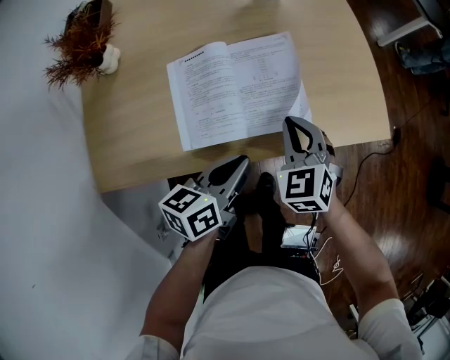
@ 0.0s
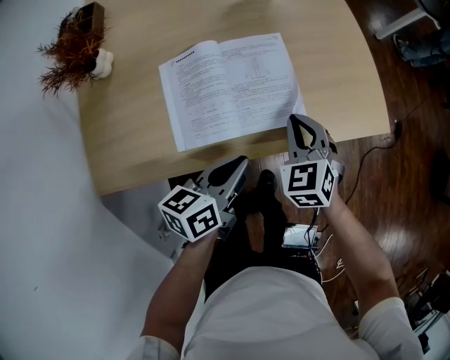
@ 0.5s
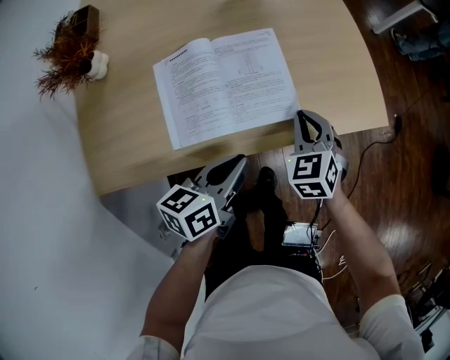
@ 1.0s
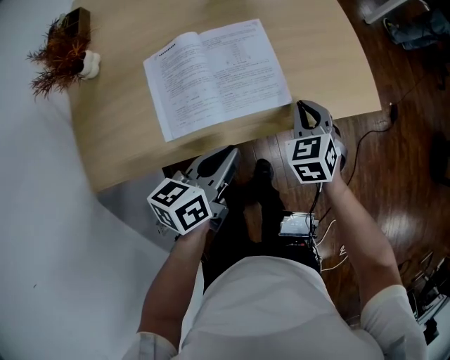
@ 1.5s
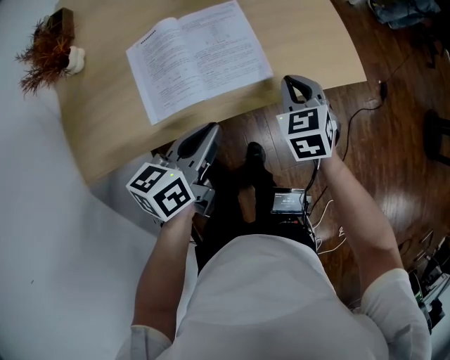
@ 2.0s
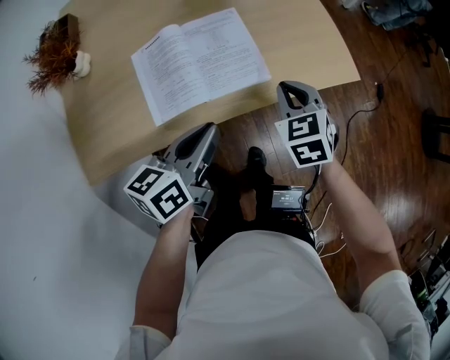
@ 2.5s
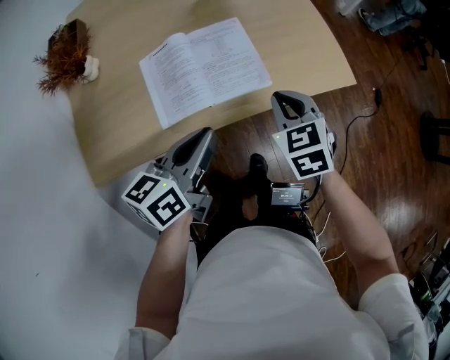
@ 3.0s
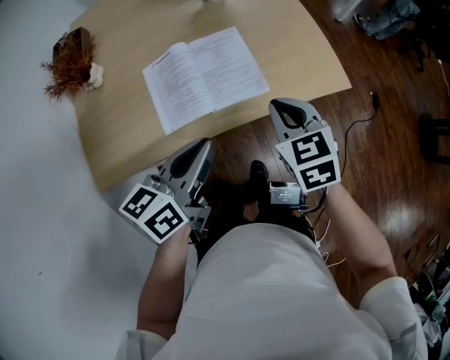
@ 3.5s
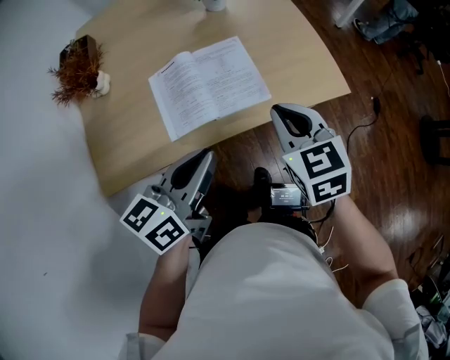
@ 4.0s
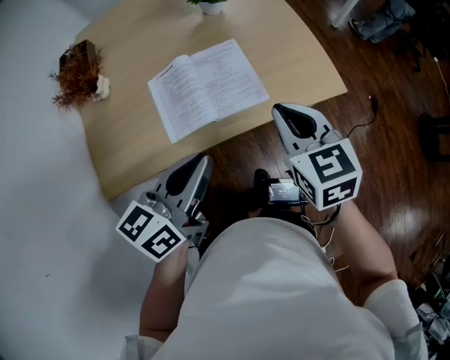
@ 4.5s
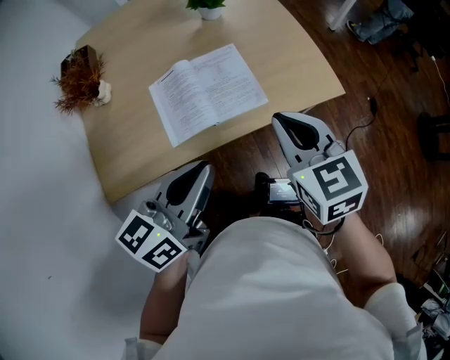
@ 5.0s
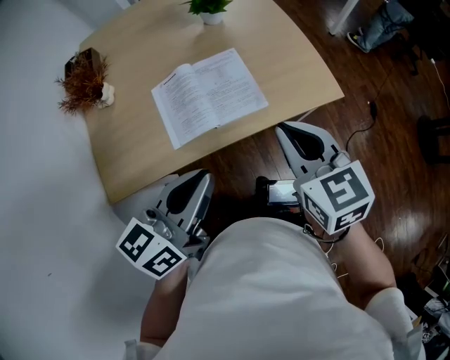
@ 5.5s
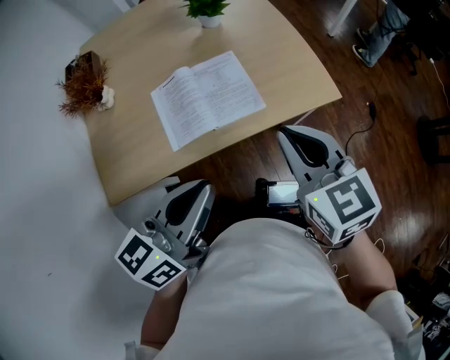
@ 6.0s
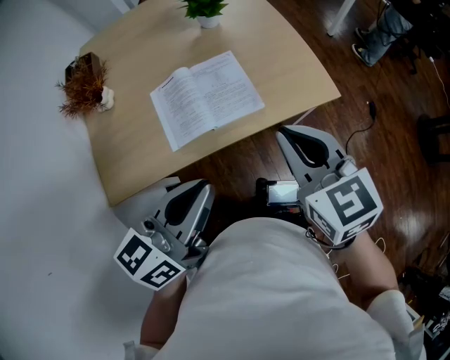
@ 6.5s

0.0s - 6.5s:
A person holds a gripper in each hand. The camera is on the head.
0.0s - 2.0s: The right gripper heads to the right, covering roughly 10 cm.
2.0s - 4.5s: The right gripper moves upward and backward, roughly 20 cm, and swivels about 20 degrees; the left gripper moves upward, about 15 cm.
4.5s - 6.5s: The left gripper ends up approximately 5 cm from where it was. Meanwhile the right gripper is displaced upward and backward by some 10 cm.

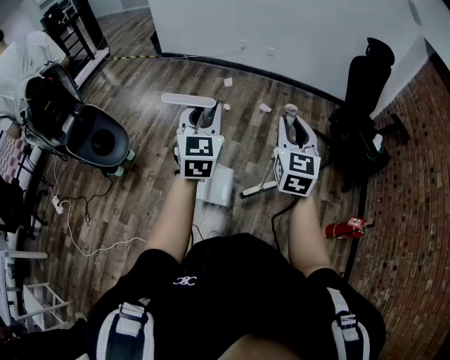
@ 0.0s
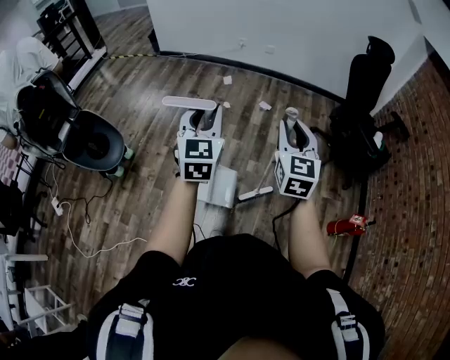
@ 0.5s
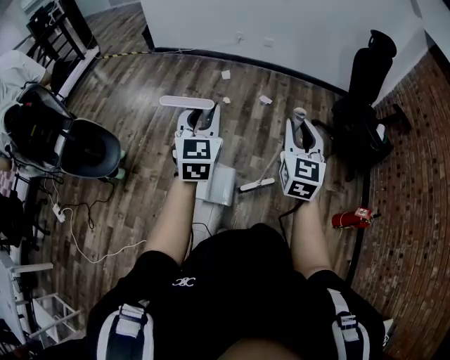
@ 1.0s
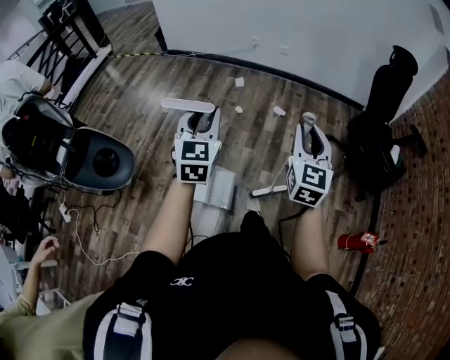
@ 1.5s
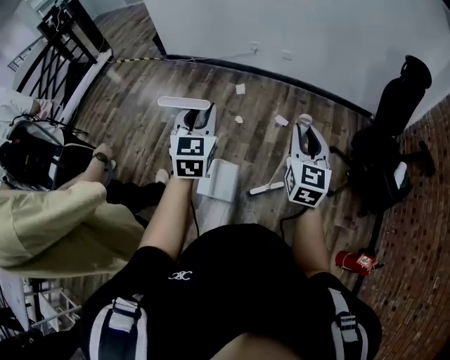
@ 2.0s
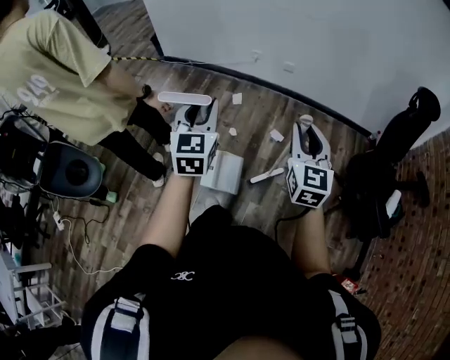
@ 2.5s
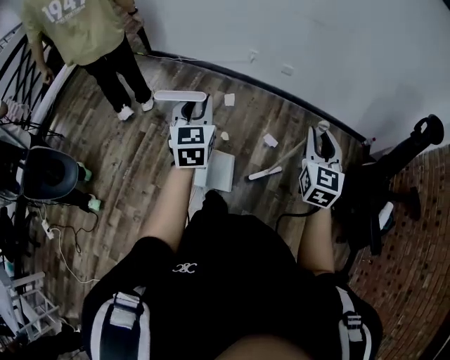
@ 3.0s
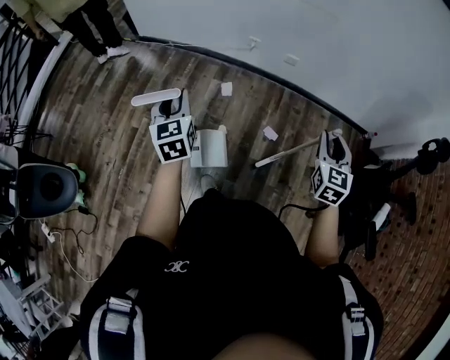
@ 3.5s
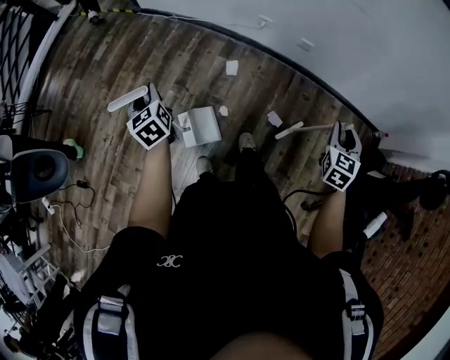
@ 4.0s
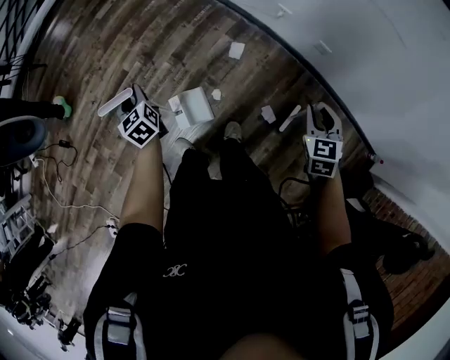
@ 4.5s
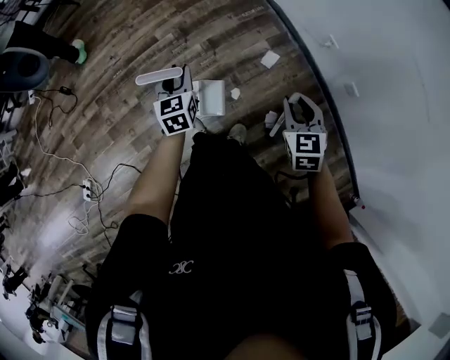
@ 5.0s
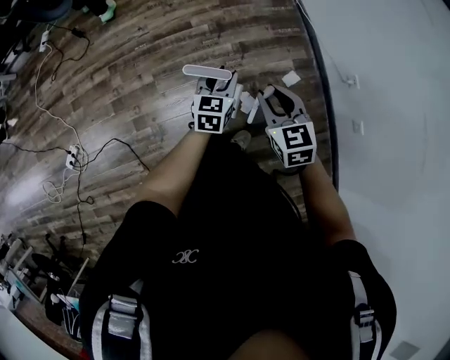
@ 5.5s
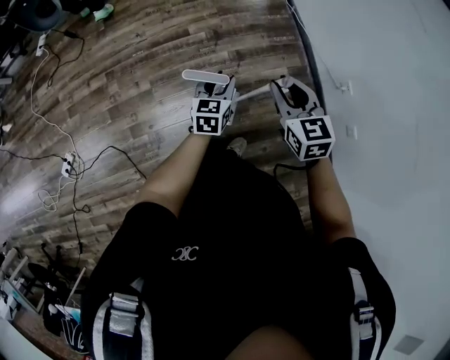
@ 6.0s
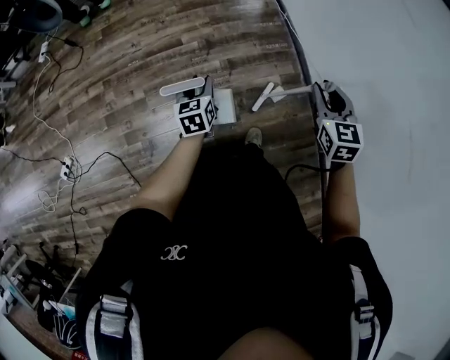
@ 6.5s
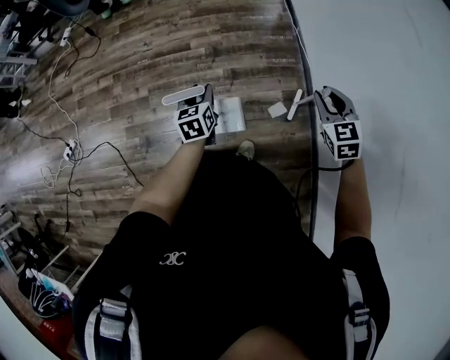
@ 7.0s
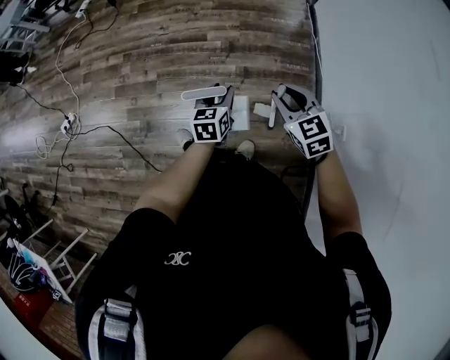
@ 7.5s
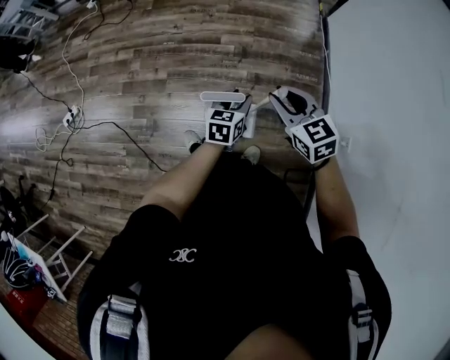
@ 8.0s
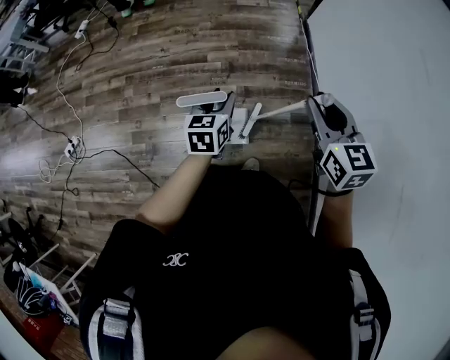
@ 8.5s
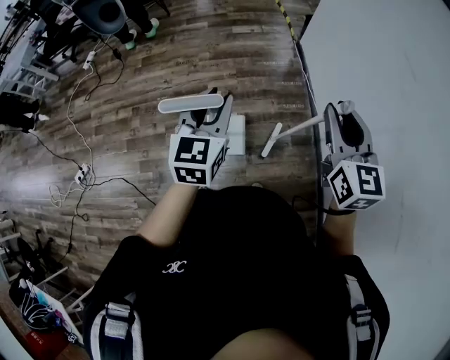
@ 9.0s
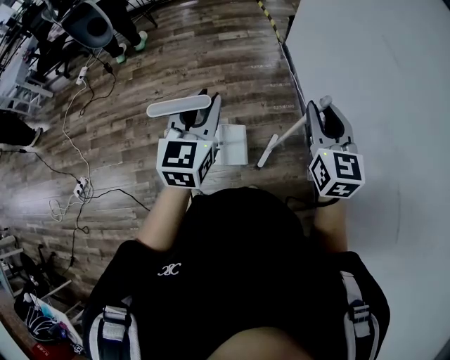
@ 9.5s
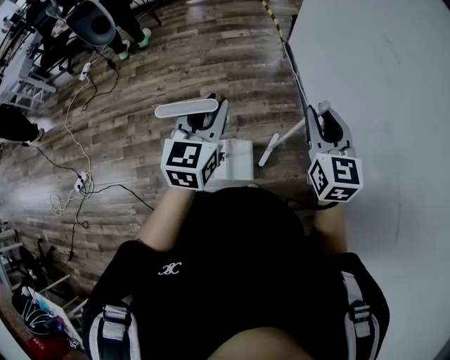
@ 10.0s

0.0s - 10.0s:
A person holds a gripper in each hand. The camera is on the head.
0.0s - 2.0s: The two grippers go roughly 30 cm forward.
2.0s - 4.0s: The right gripper travels forward by roughly 50 cm, and swivels some 30 degrees; the left gripper shifts roughly 60 cm forward, downward and to the left, and swivels about 50 degrees.
4.0s - 6.0s: The right gripper goes downward and returns, roughly 10 cm each way, and rotates approximately 80 degrees. Meanwhile the left gripper is displaced downward by about 10 cm.
6.0s - 8.0s: The left gripper moves approximately 10 cm. The right gripper rotates some 30 degrees.
8.0s - 10.0s: The right gripper is displaced to the right and upward by approximately 25 cm, and swivels about 40 degrees; the left gripper moves upward, about 30 cm, and swivels some 30 degrees.

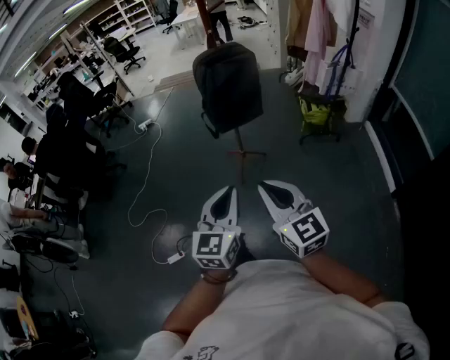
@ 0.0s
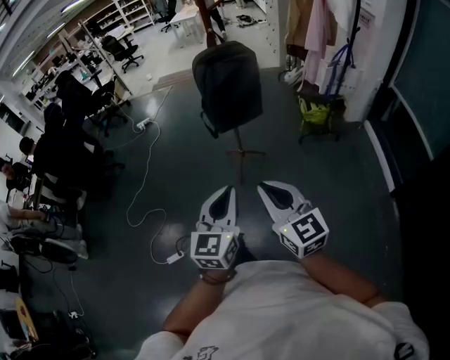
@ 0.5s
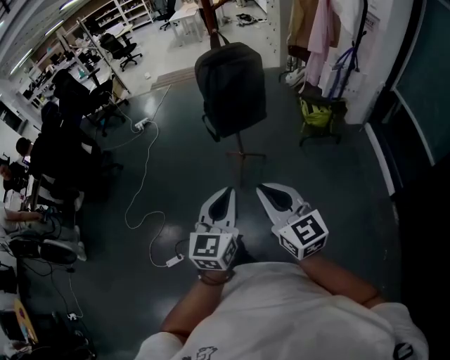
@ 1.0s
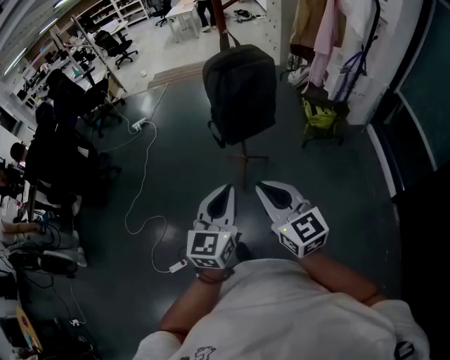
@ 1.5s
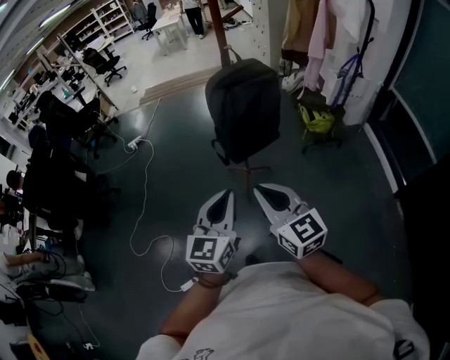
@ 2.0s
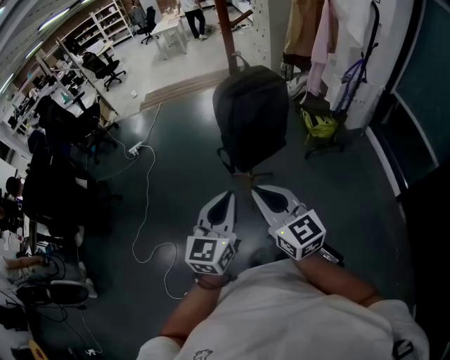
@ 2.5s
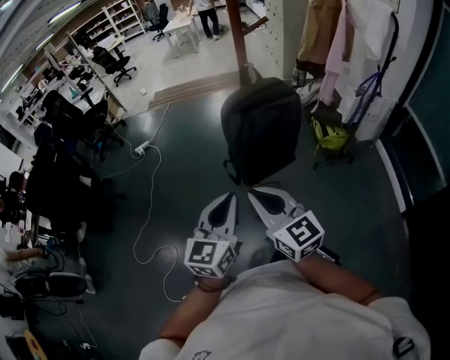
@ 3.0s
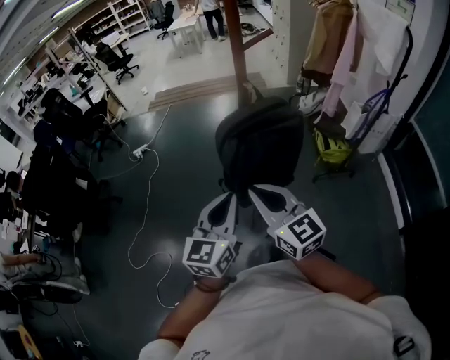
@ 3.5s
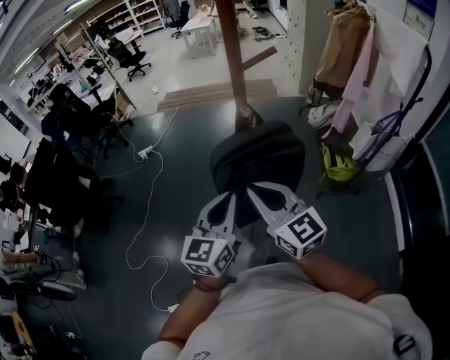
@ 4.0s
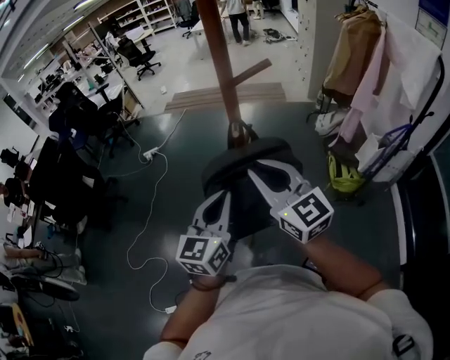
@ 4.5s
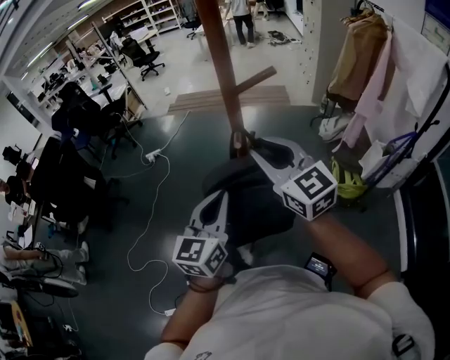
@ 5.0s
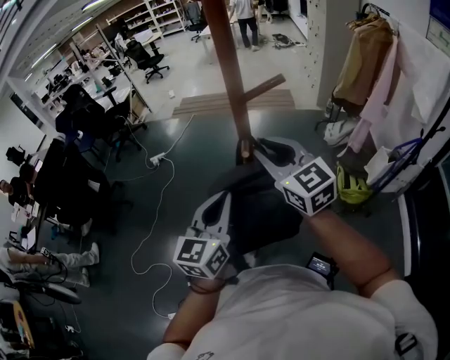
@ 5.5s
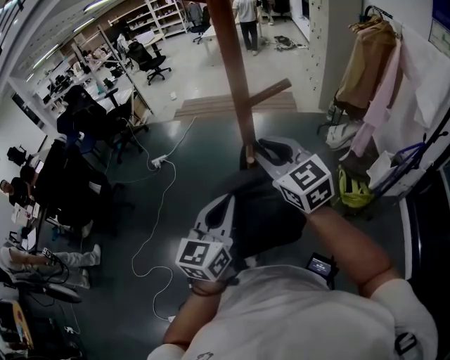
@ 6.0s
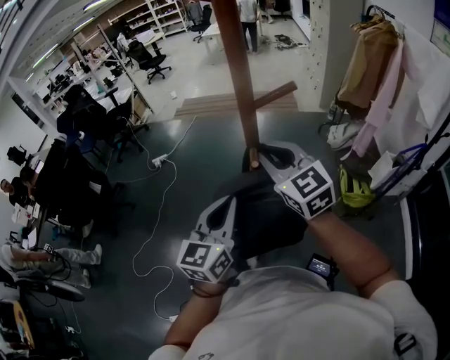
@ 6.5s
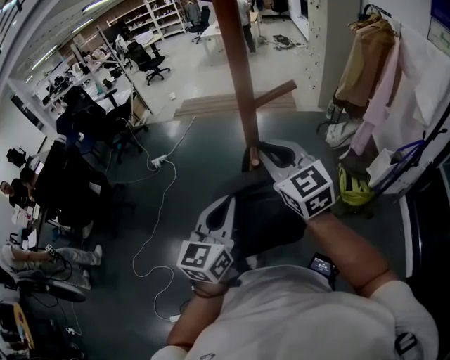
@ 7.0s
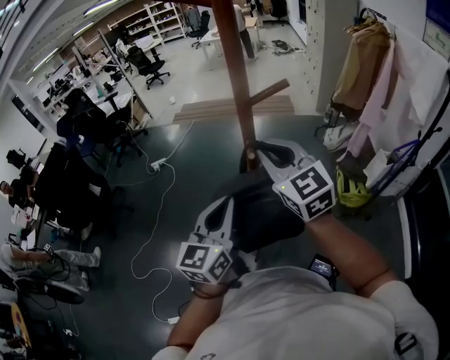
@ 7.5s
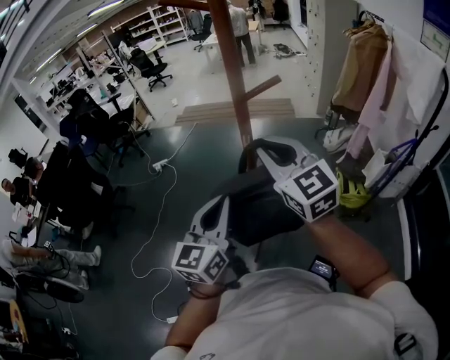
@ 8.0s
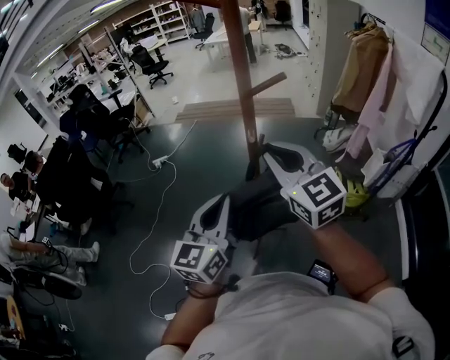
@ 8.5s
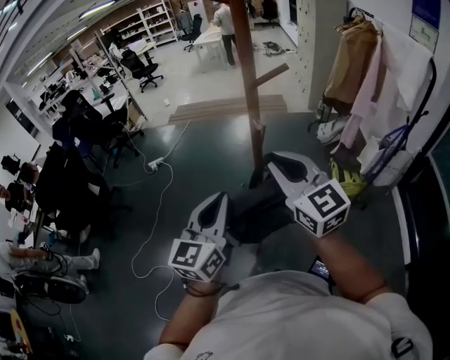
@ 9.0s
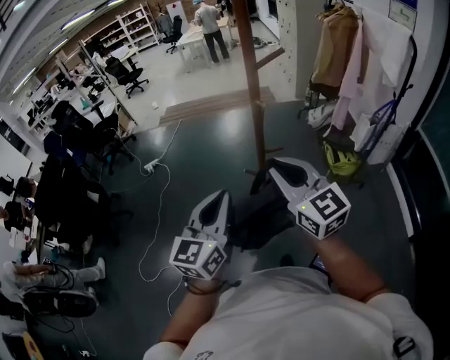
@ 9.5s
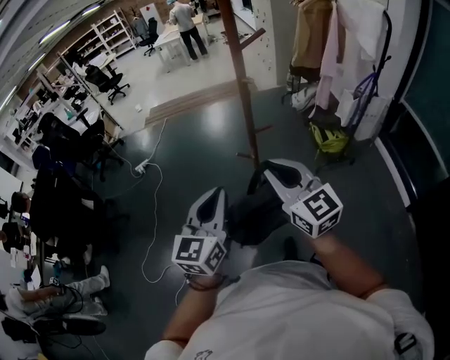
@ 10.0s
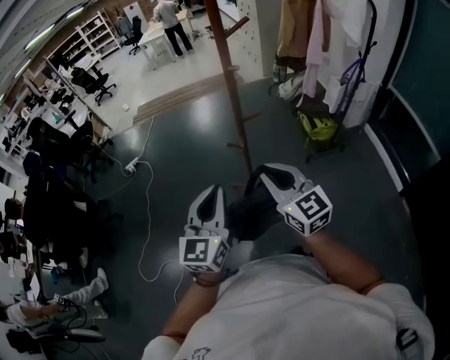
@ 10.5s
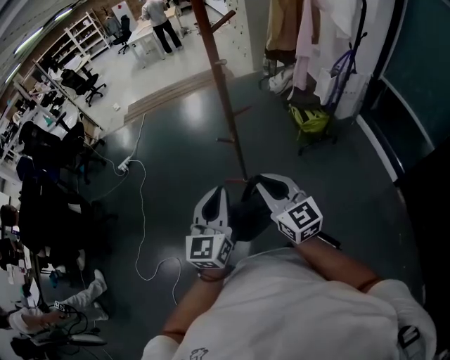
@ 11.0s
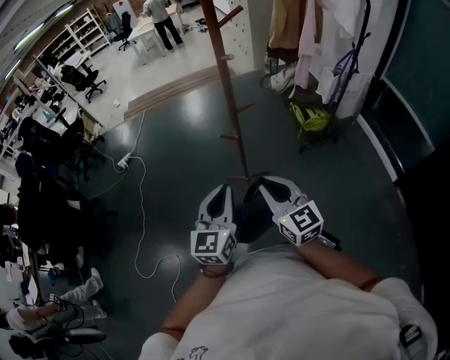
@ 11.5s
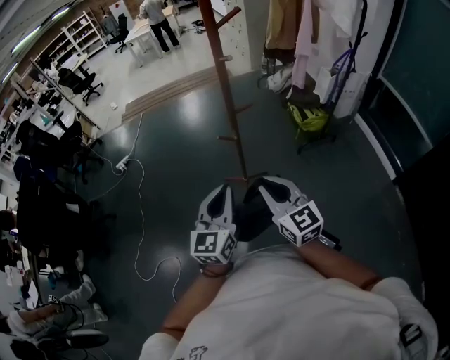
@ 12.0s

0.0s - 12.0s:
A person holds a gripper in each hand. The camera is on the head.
0.0s - 2.0s: Both grippers move forward and to the left, approximately 25 cm.
2.0s - 4.0s: Both grippers move forward, some 30 cm.
4.0s - 6.0s: The left gripper goes roughly 10 cm forward. The right gripper heads forward, covering some 20 cm.
6.0s - 8.0s: The right gripper moves backward and upward, some 10 cm; the left gripper shifts some 5 cm backward.
8.0s - 10.0s: Both grippers move backward and to the left, some 25 cm.
10.0s - 12.0s: The right gripper moves downward and backward, roughly 15 cm; the left gripper goes some 10 cm downward.
